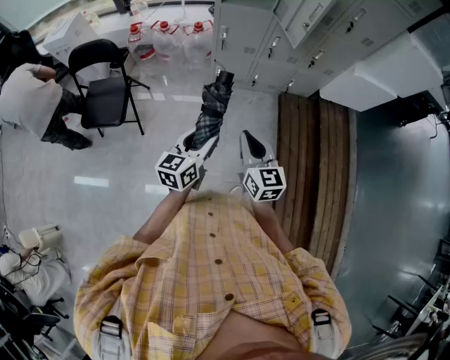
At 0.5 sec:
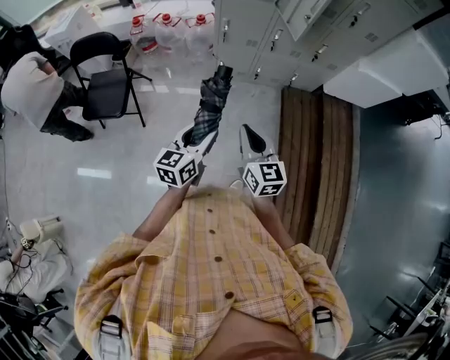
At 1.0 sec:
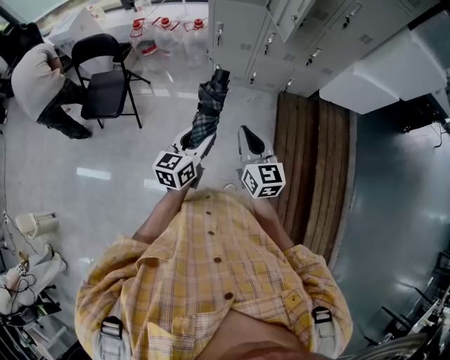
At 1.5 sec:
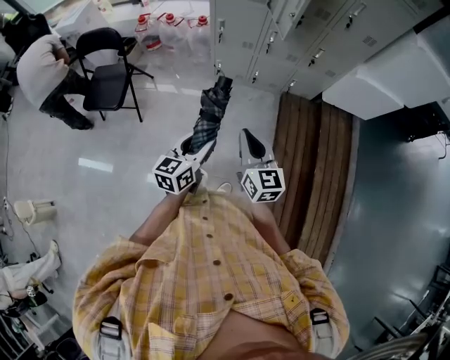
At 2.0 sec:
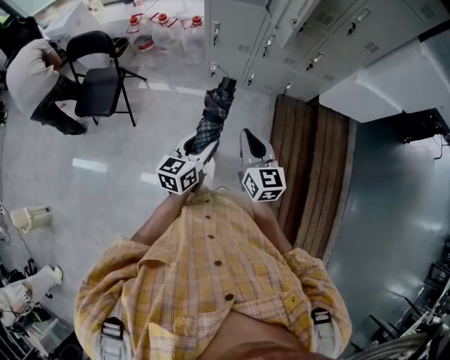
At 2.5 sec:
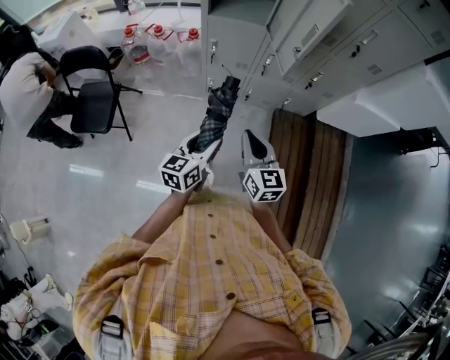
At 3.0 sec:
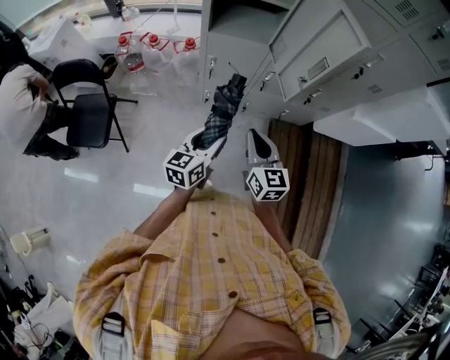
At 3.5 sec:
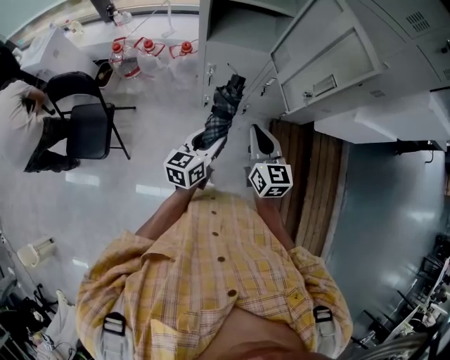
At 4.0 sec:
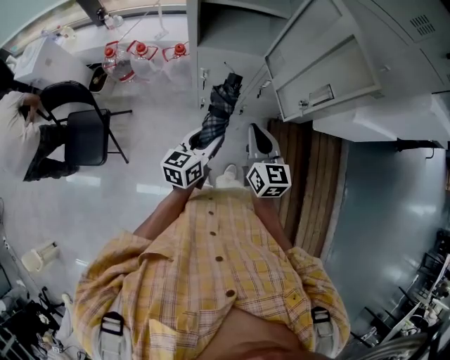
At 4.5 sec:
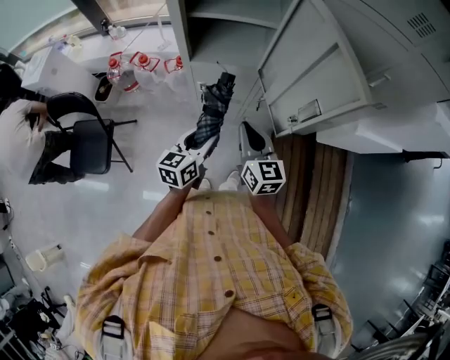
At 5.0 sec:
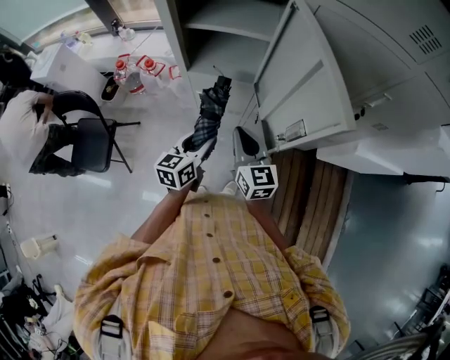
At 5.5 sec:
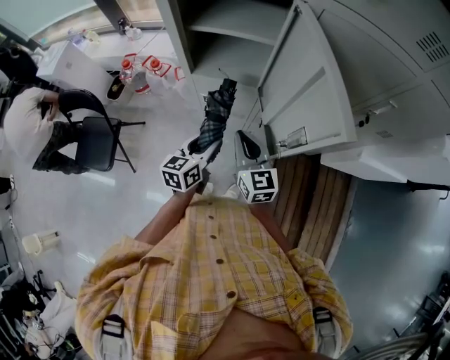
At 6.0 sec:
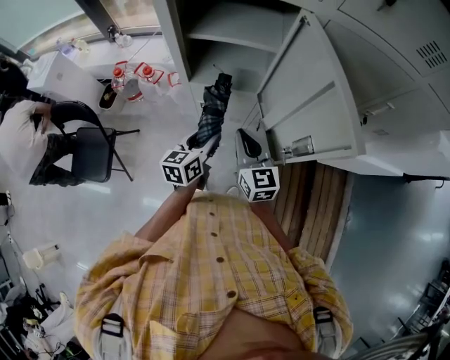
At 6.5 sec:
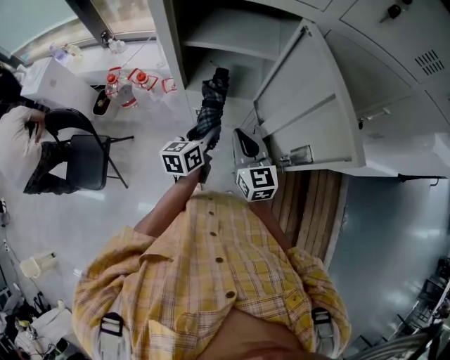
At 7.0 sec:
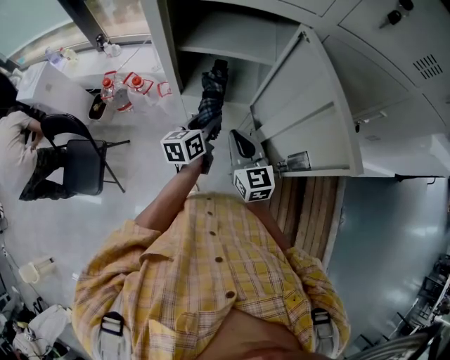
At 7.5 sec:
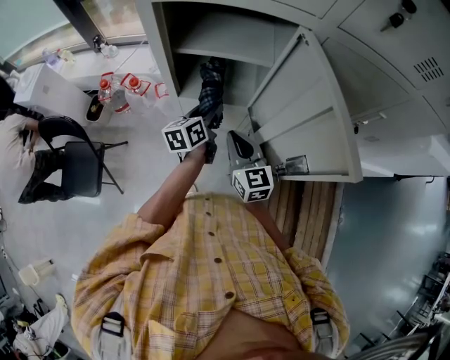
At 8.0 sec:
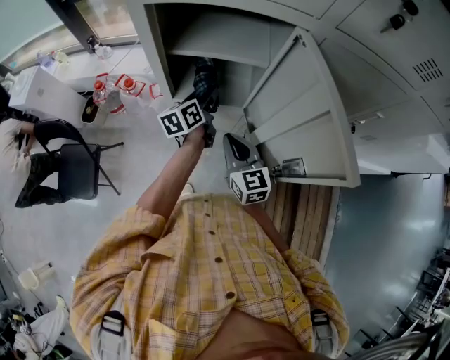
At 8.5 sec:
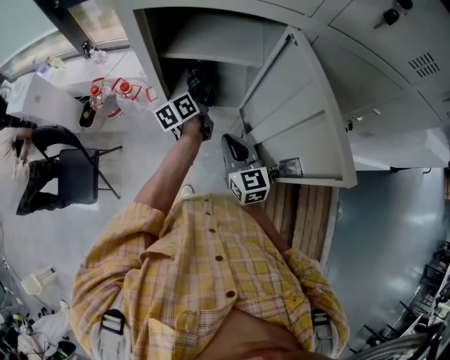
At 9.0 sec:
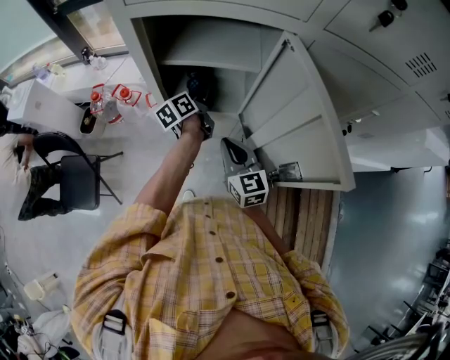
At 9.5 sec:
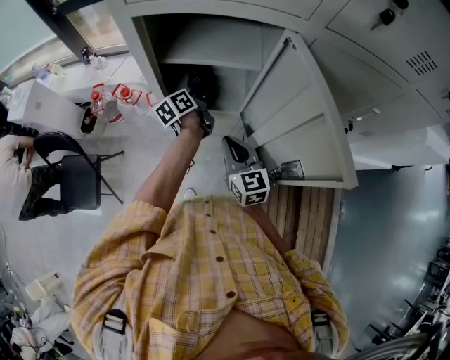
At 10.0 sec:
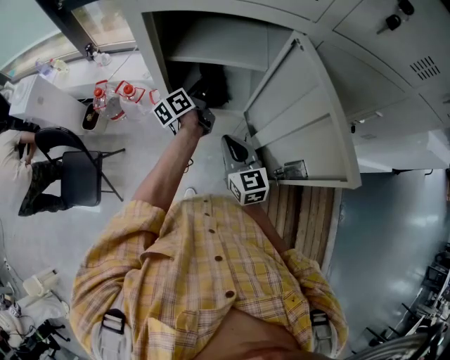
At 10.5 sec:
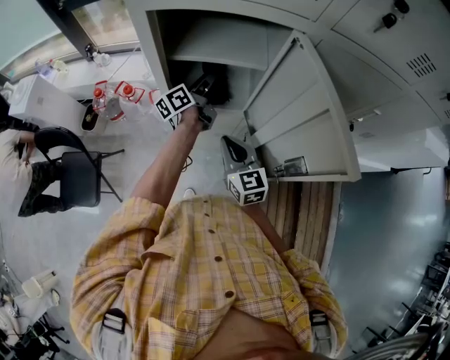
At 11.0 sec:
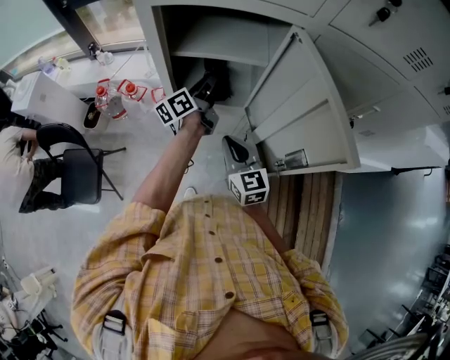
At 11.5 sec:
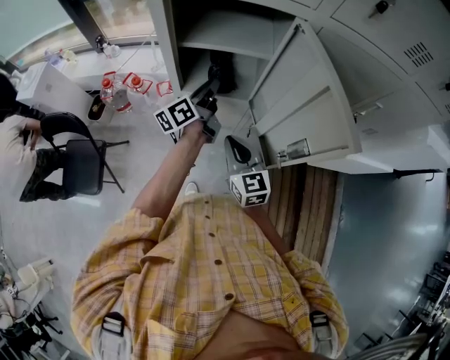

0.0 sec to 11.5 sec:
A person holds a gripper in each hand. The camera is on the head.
0.0 sec to 2.0 sec: The left gripper moves to the right, some 15 cm, while the right gripper shifts about 15 cm to the right and forward.
2.0 sec to 4.0 sec: The grippers both shift forward by some 35 cm.
4.0 sec to 6.0 sec: Both grippers travel together forward, about 15 cm.
6.0 sec to 7.5 sec: The left gripper shifts some 15 cm forward.
7.5 sec to 9.5 sec: The left gripper heads forward, covering roughly 10 cm.
9.5 sec to 11.5 sec: The left gripper moves upward and backward, about 15 cm, rotates some 20 degrees, and closes; the right gripper goes about 5 cm backward.

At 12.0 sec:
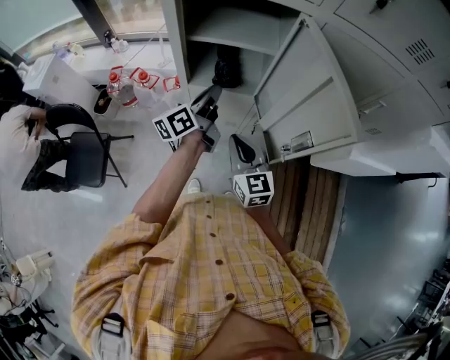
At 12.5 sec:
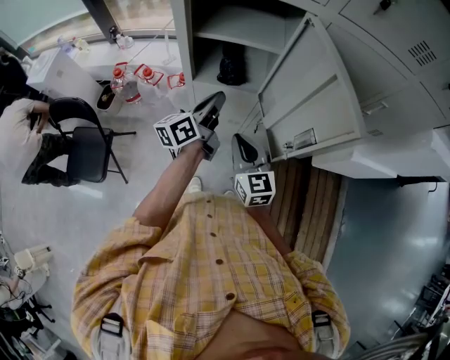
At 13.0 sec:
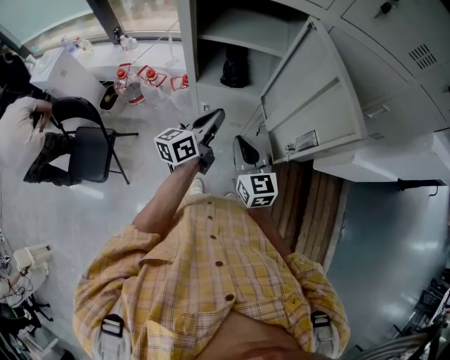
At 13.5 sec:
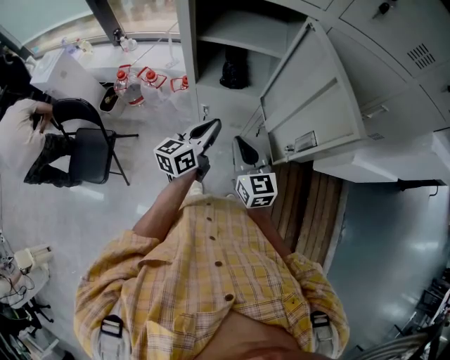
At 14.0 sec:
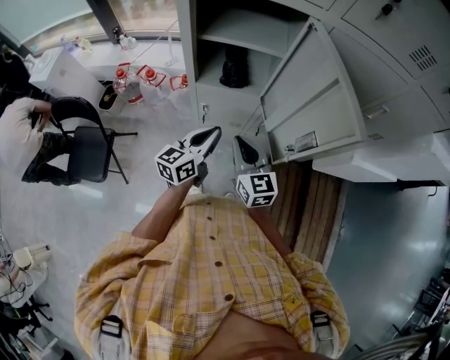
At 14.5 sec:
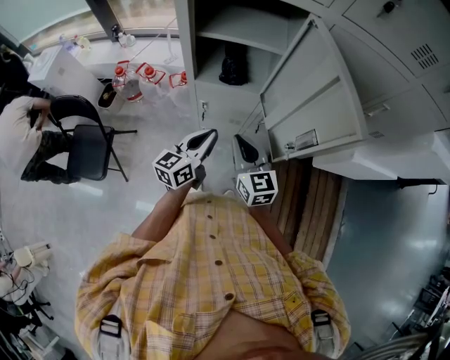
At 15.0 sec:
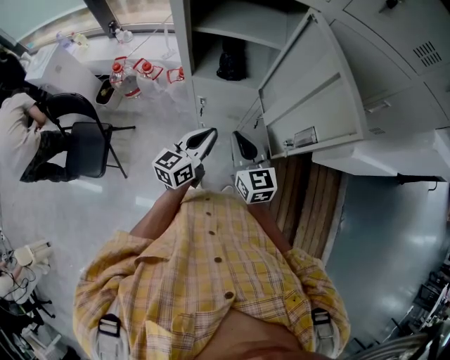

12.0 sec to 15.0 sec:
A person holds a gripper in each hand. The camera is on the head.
12.0 sec to 13.5 sec: The left gripper moves backward, about 10 cm, and rotates roughly 20 degrees.
13.5 sec to 15.0 sec: There are only small adjustments of the grippers.

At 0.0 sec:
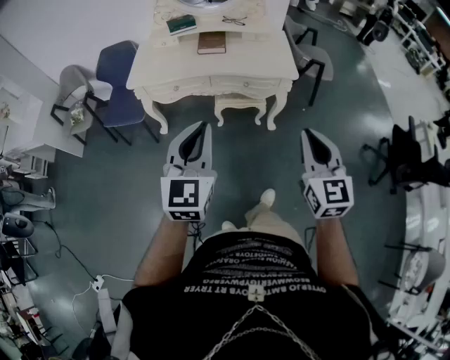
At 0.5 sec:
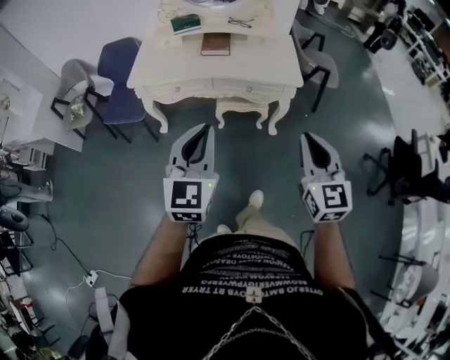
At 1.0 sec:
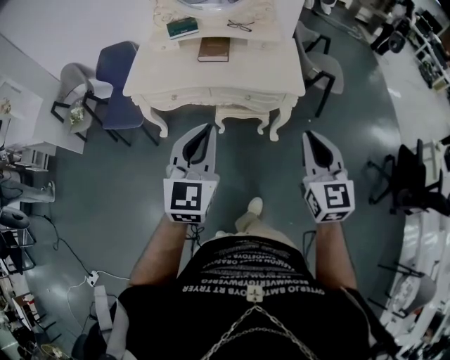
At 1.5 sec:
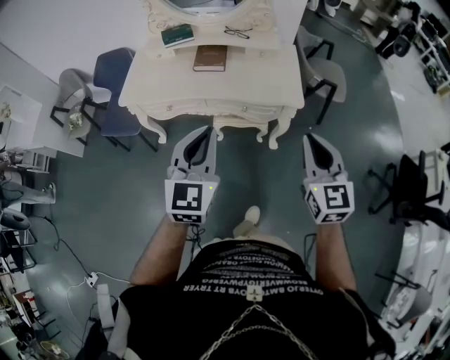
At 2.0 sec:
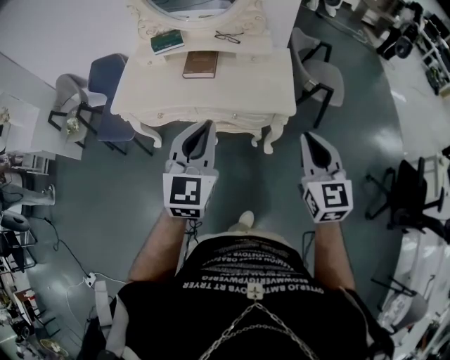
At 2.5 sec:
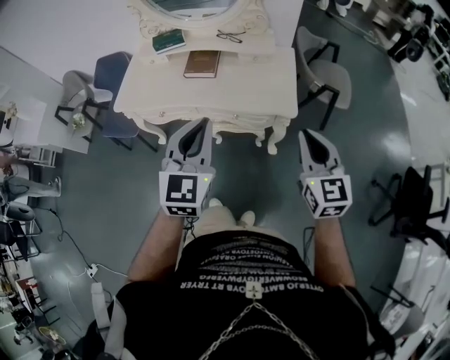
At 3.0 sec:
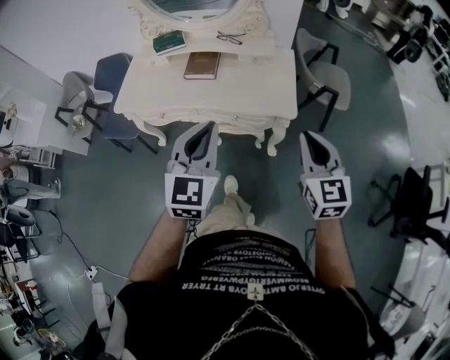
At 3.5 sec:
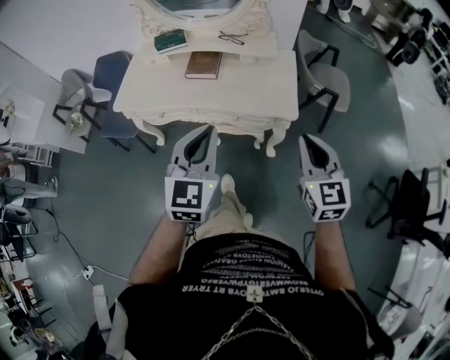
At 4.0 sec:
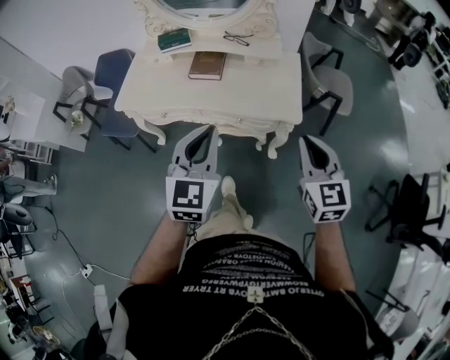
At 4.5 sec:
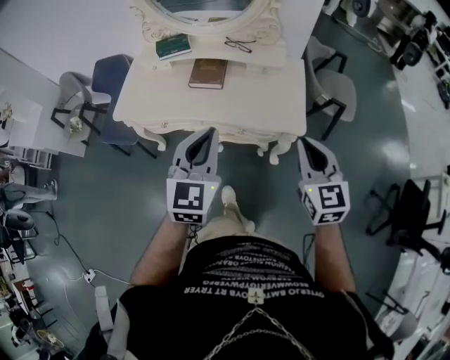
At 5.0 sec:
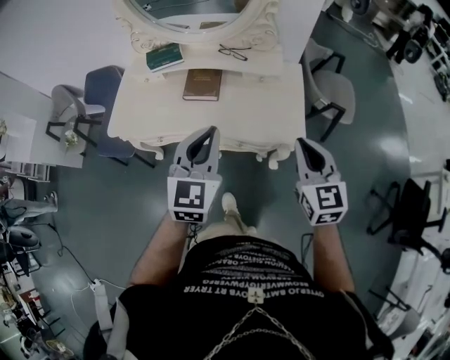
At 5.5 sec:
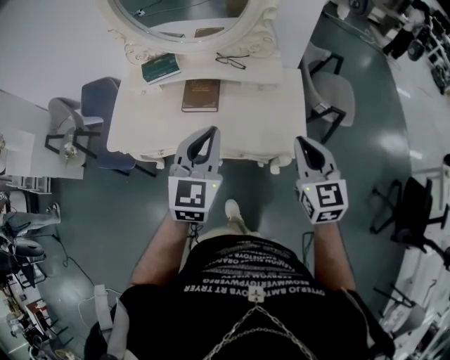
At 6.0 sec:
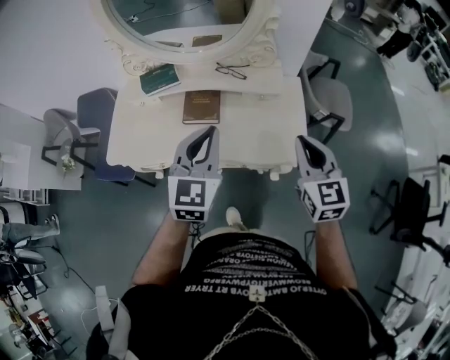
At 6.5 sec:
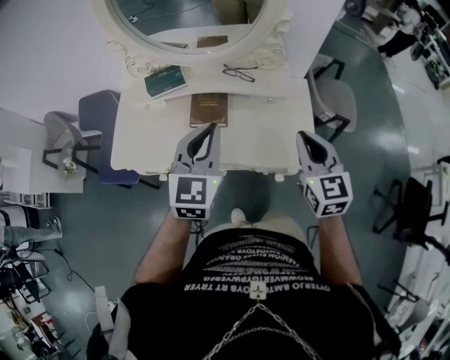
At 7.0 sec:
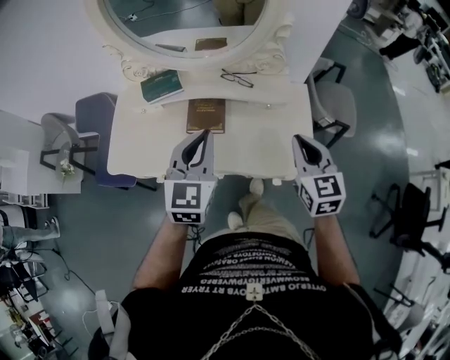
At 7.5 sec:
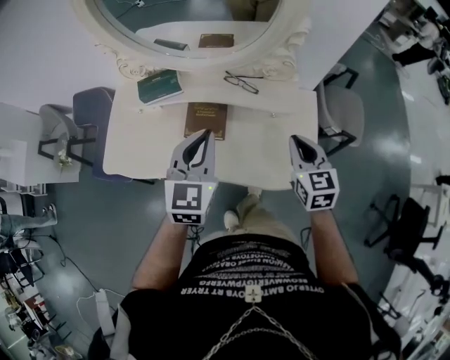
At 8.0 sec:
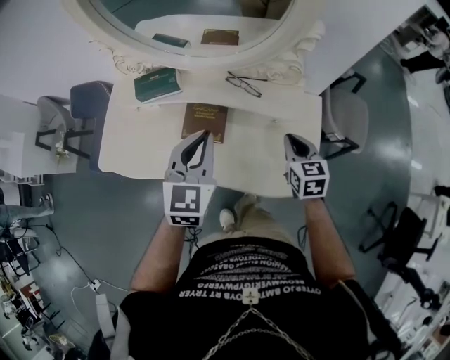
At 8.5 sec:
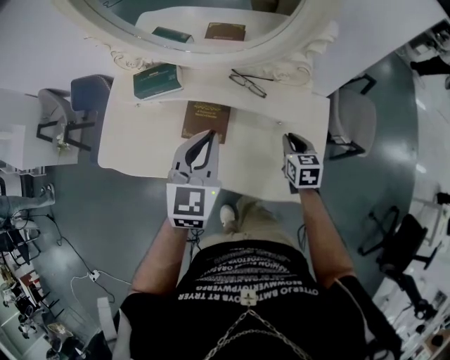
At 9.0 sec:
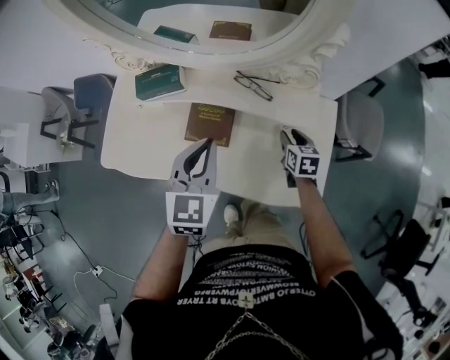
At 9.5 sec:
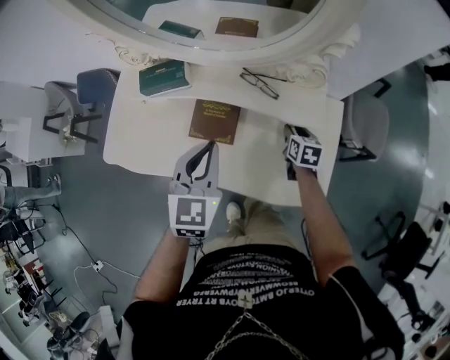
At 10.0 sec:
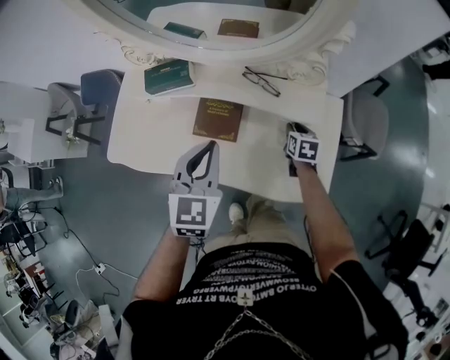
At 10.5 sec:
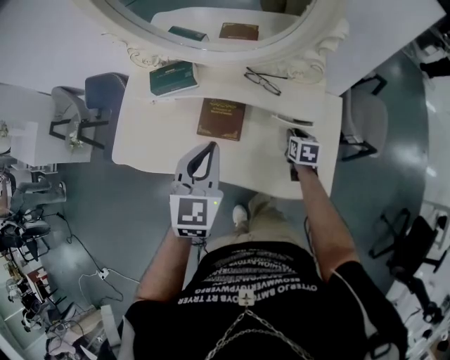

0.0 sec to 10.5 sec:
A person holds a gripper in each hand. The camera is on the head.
0.0 sec to 2.0 sec: Both grippers travel together forward and to the right, roughly 30 cm.
2.0 sec to 4.0 sec: The right gripper shifts by roughly 5 cm.
4.0 sec to 6.5 sec: Both grippers travel together forward, approximately 25 cm.
6.5 sec to 8.5 sec: The right gripper travels downward and forward by approximately 35 cm, and rotates about 30 degrees; the left gripper shifts approximately 15 cm forward and downward.
8.5 sec to 10.5 sec: The right gripper moves downward, some 5 cm. The left gripper moves about 5 cm.

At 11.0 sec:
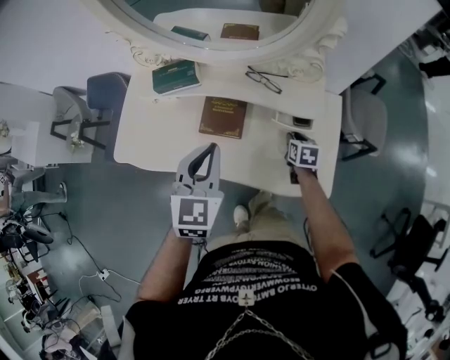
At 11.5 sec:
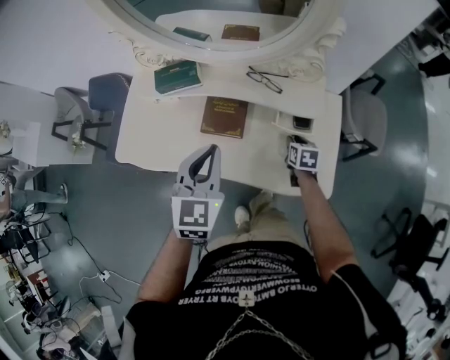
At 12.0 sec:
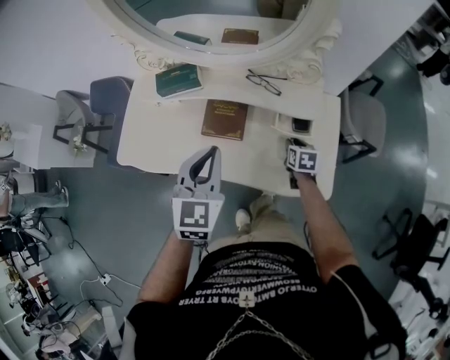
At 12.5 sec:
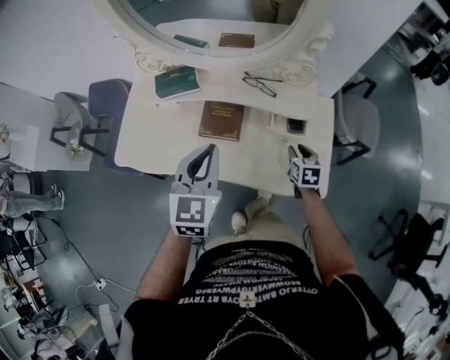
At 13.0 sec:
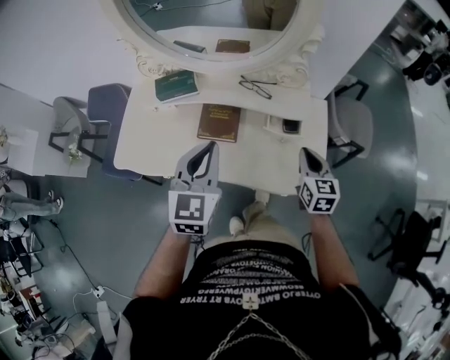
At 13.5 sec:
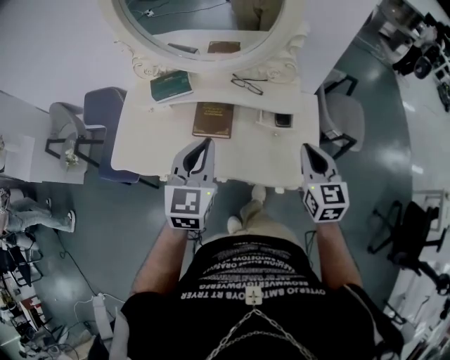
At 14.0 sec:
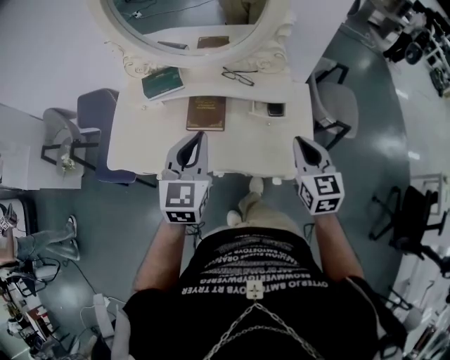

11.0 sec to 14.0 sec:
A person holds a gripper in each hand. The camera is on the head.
11.0 sec to 12.5 sec: The right gripper heads backward, covering approximately 5 cm.
12.5 sec to 14.0 sec: The left gripper moves some 5 cm; the right gripper is displaced upward and backward by approximately 25 cm, turns by approximately 30 degrees, and closes.
